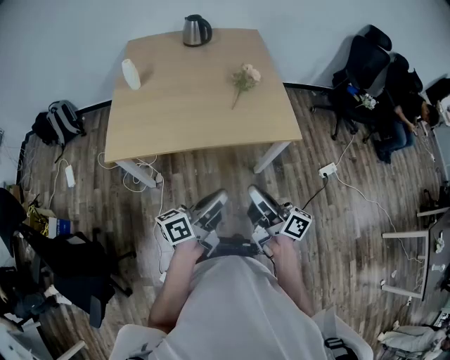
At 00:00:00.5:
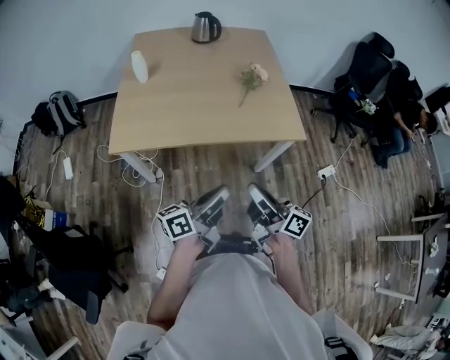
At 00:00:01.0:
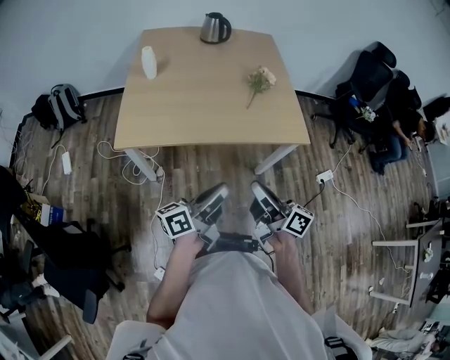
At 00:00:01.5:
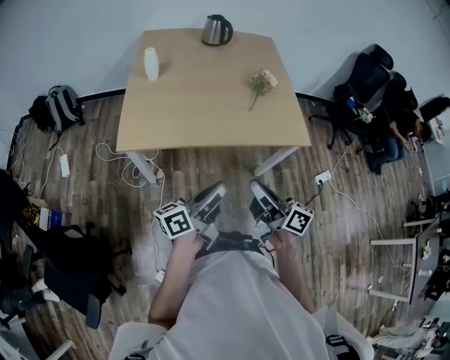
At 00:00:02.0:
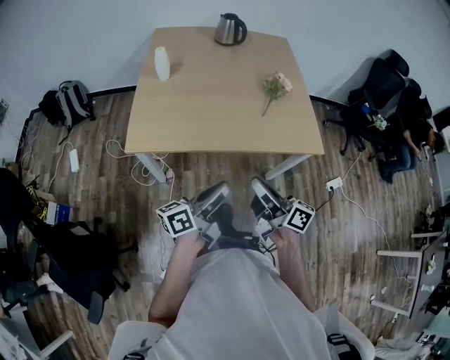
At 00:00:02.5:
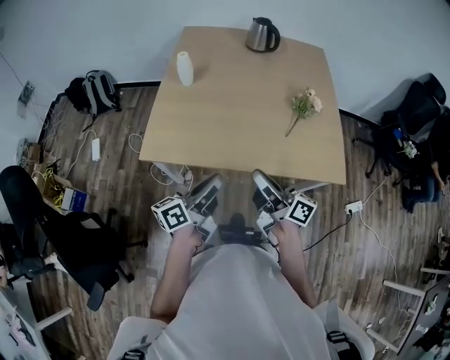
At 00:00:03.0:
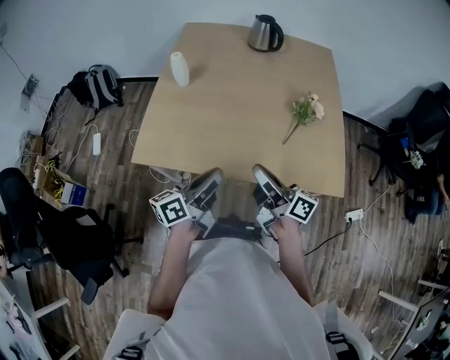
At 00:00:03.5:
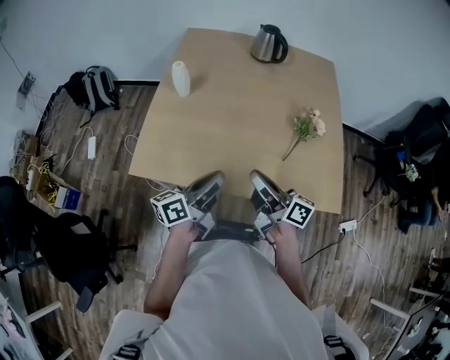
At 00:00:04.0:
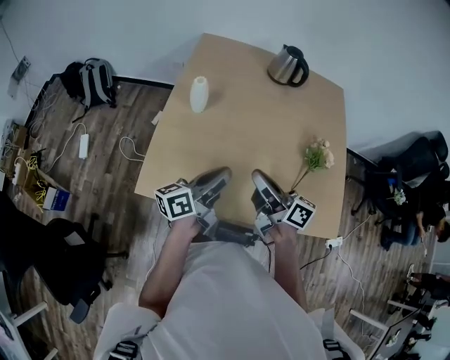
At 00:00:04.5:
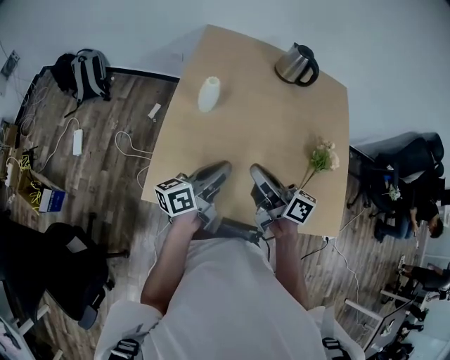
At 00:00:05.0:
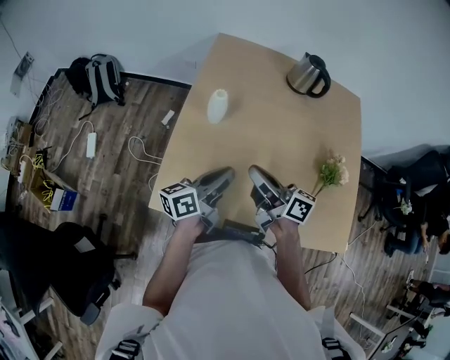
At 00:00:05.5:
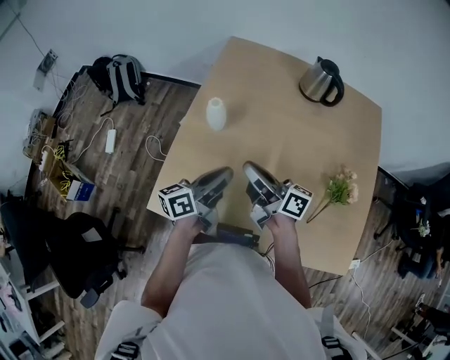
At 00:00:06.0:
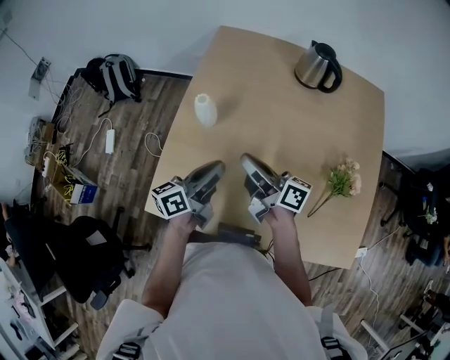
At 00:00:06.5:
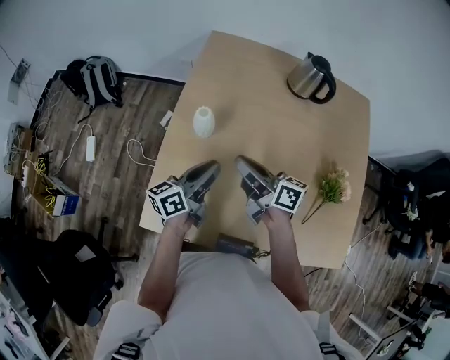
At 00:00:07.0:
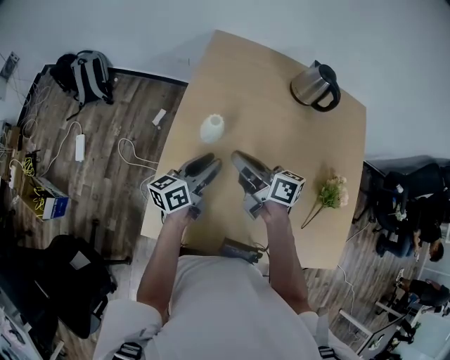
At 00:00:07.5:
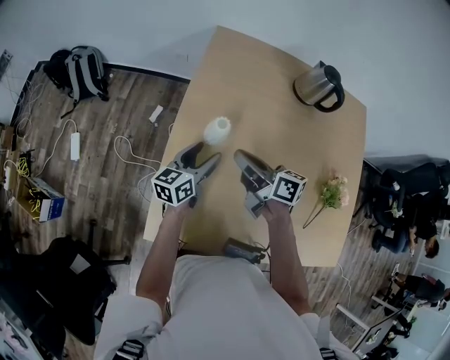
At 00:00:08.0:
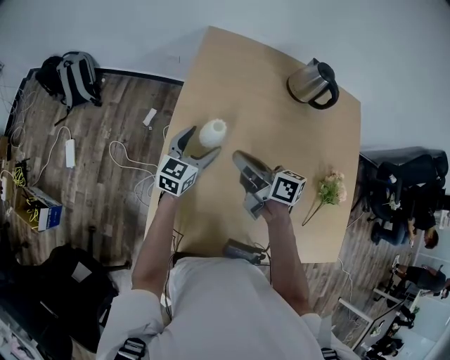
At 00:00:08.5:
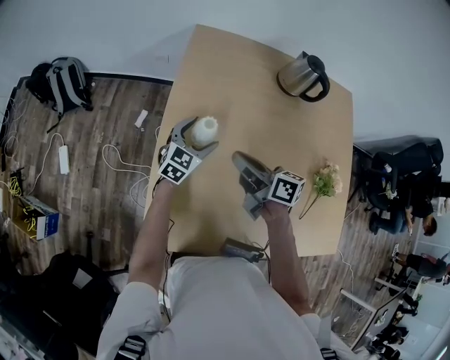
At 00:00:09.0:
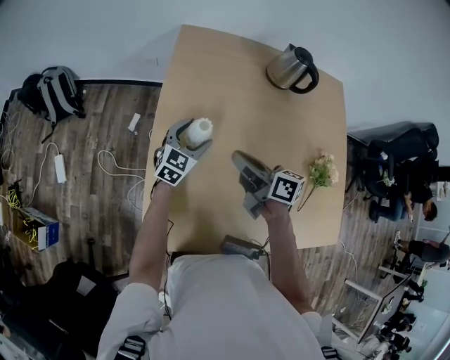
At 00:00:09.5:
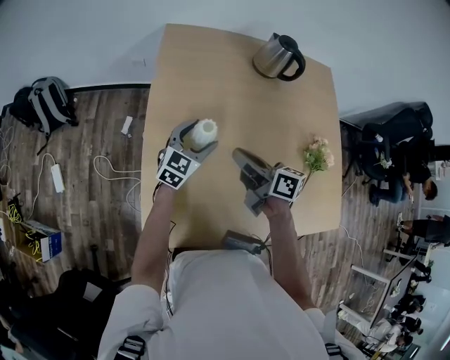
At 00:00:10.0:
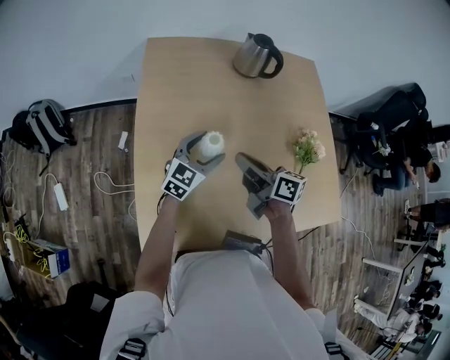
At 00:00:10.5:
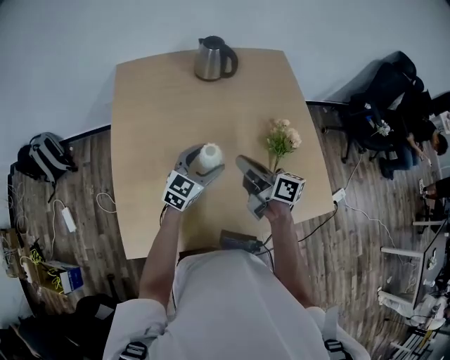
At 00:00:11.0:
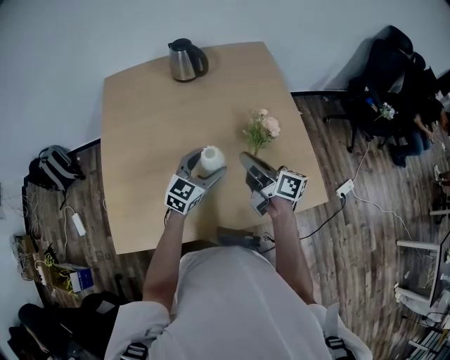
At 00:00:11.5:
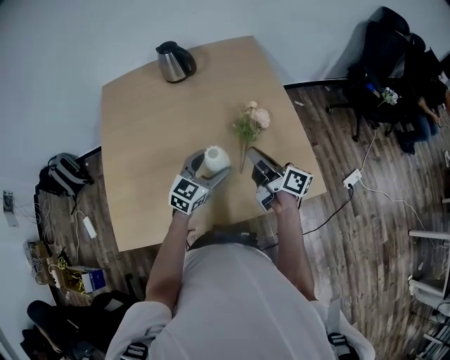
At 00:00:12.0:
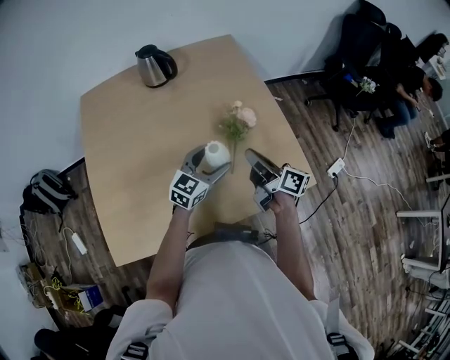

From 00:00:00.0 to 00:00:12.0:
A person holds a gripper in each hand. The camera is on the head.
From 00:00:00.0 to 00:00:02.0: The grippers both shift to the left by about 10 cm.
From 00:00:02.0 to 00:00:04.0: The grippers both shift forward by some 35 cm.
From 00:00:04.0 to 00:00:06.0: Both grippers travel together forward, approximately 15 cm.
From 00:00:06.0 to 00:00:08.0: The right gripper shifts roughly 10 cm forward and to the left, and changes its angle by approximately 20 degrees; the left gripper is displaced forward and downward by roughly 20 cm, rotates around the line of its fingers by some 40 degrees, clockwise from behind, and opens.
From 00:00:08.0 to 00:00:10.0: Both grippers move to the right and backward, approximately 15 cm. The left gripper rotates approximately 30 degrees.
From 00:00:10.0 to 00:00:12.0: The two grippers go approximately 35 cm to the right. The right gripper swivels roughly 20 degrees.

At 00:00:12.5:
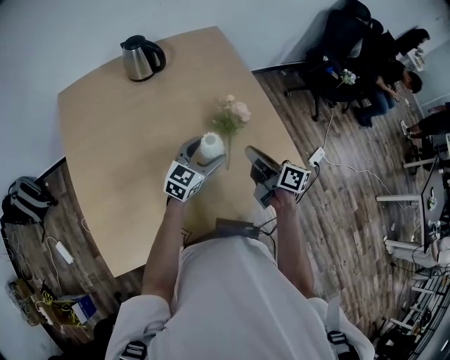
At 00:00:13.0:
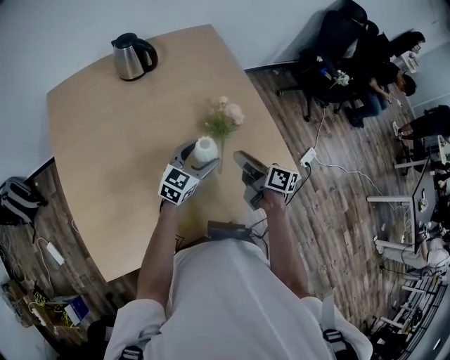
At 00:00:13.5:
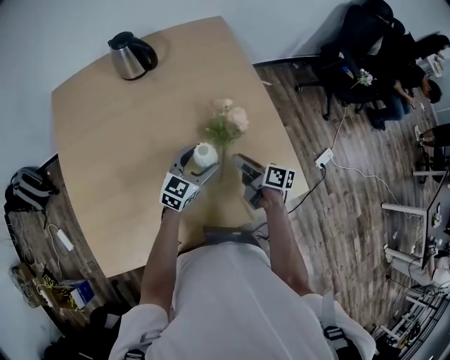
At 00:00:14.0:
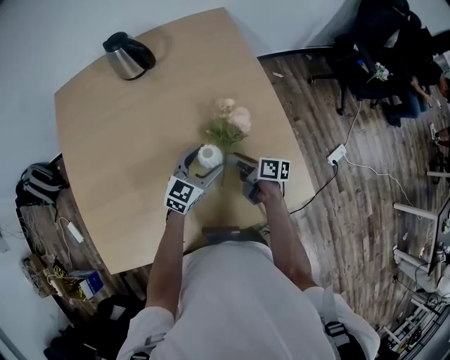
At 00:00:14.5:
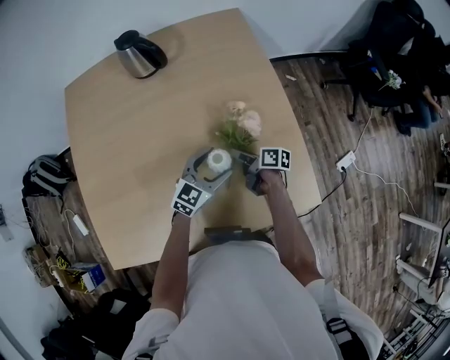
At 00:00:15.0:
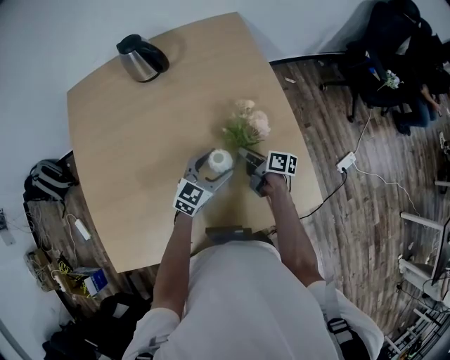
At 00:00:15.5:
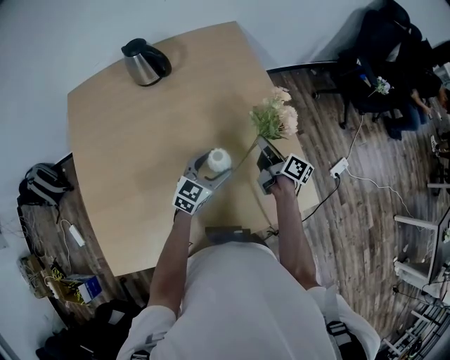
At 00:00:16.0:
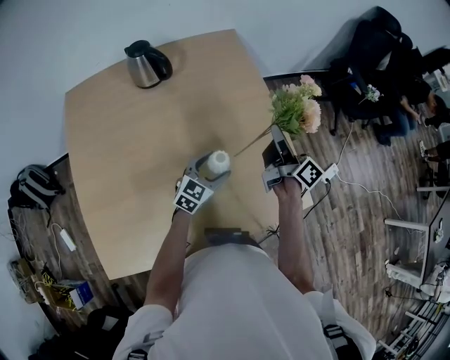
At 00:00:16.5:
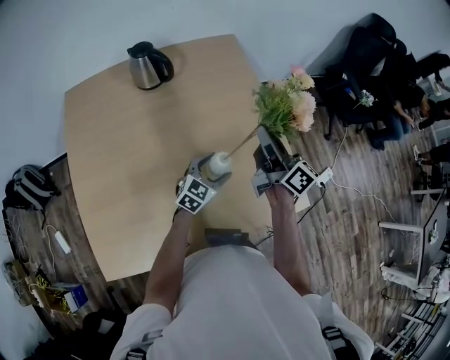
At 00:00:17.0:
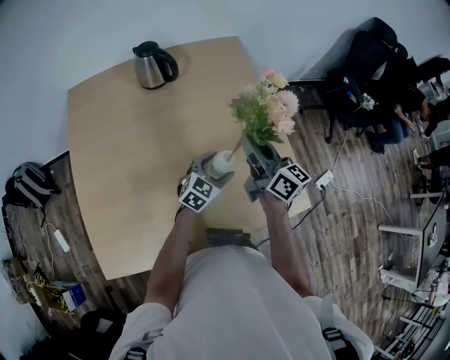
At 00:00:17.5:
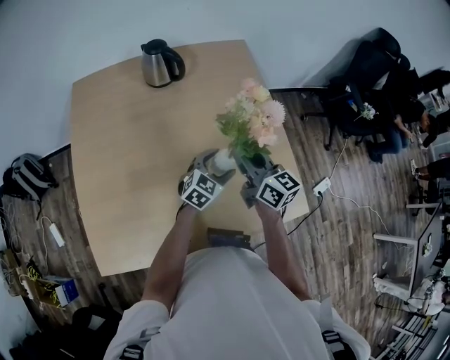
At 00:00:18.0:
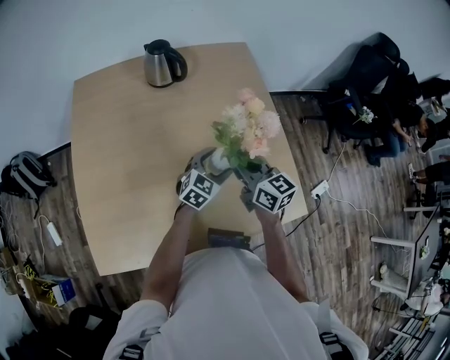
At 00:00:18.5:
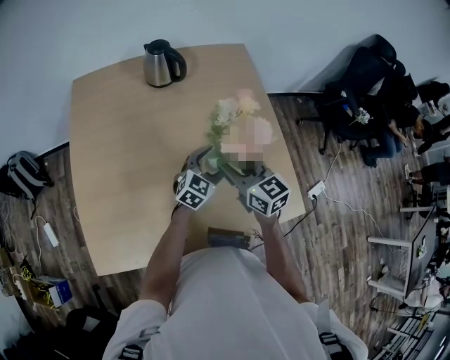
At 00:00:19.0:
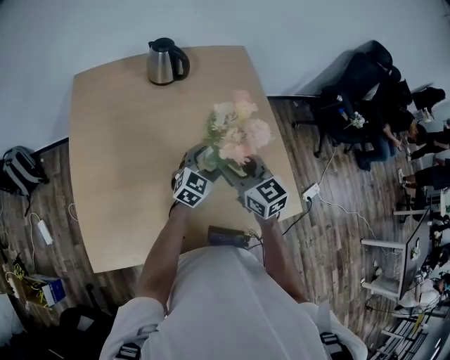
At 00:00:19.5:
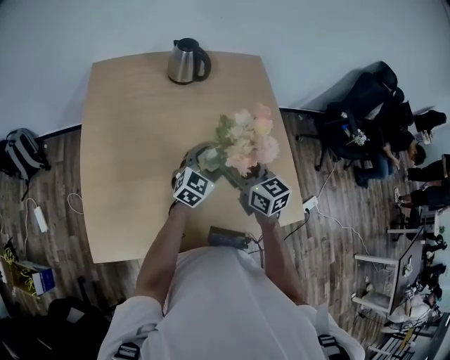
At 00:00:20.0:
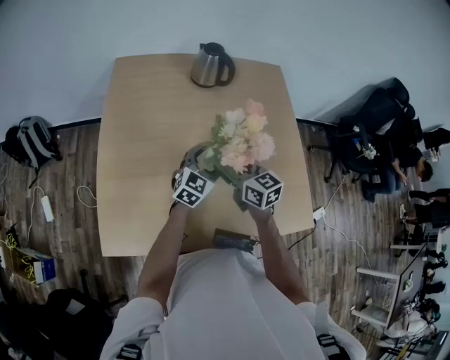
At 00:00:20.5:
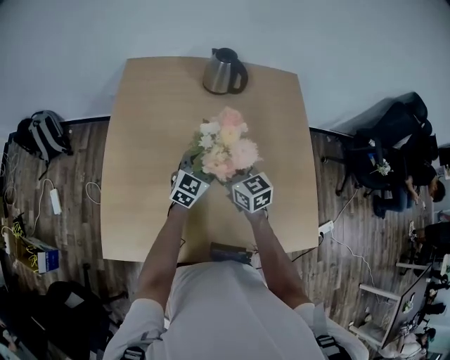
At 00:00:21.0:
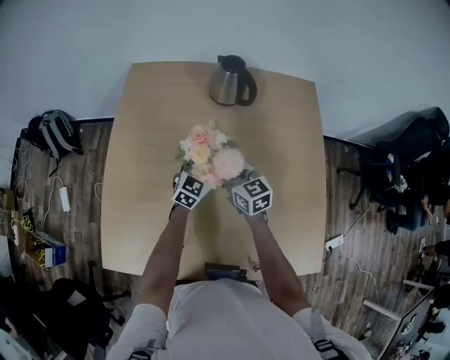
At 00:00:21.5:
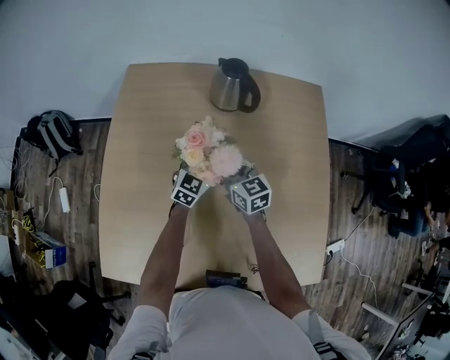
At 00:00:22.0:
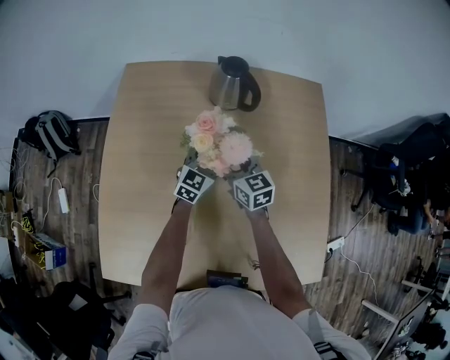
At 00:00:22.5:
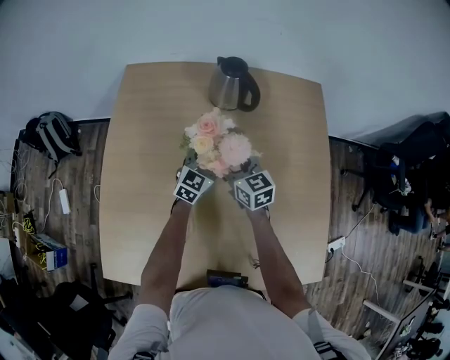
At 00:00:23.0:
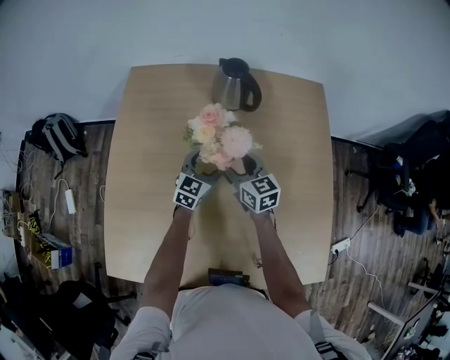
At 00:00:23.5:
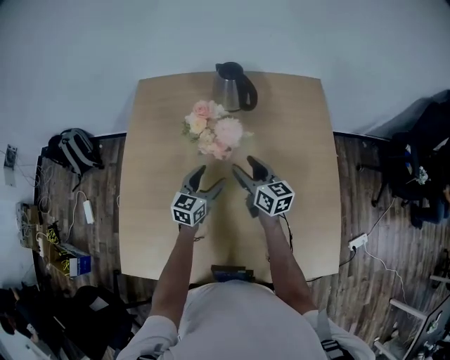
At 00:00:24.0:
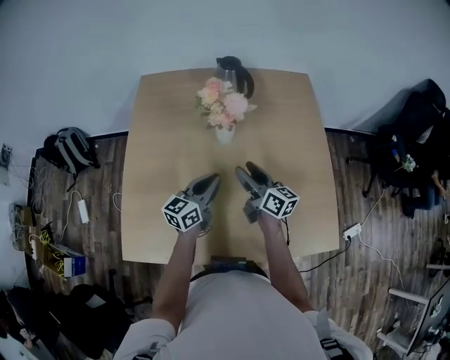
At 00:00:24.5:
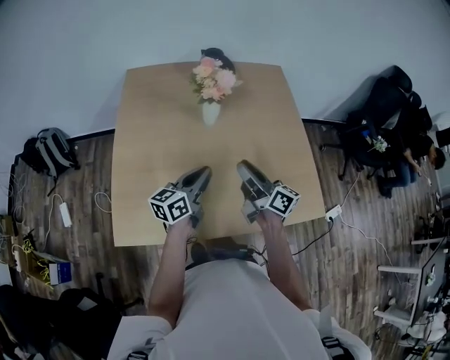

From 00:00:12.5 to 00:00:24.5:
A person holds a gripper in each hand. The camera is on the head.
From 00:00:12.5 to 00:00:14.5: The right gripper moves downward and forward, approximately 25 cm, rotates some 30 degrees, and opens its fingers. The left gripper shifts about 5 cm downward.
From 00:00:14.5 to 00:00:16.5: The right gripper is displaced upward by some 30 cm, and angles its fingers upward, by approximately 40 degrees.
From 00:00:16.5 to 00:00:18.5: The right gripper shifts some 15 cm to the left, backward and downward, changes its angle by about 50 degrees, and opens.
From 00:00:18.5 to 00:00:20.5: The grippers both shift to the left by about 15 cm.
From 00:00:20.5 to 00:00:22.5: Both grippers travel together forward, about 15 cm.
From 00:00:22.5 to 00:00:24.5: The left gripper travels backward and upward by some 35 cm, swivels some 40 degrees, and closes up; the right gripper is displaced backward by approximately 30 cm, turns by some 40 degrees, and closes up.

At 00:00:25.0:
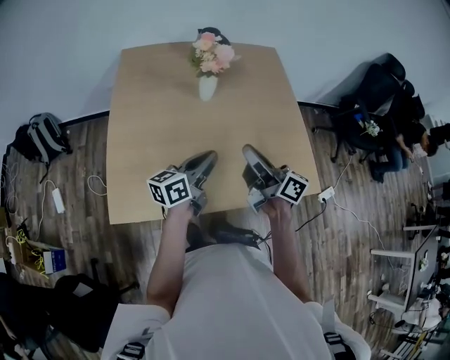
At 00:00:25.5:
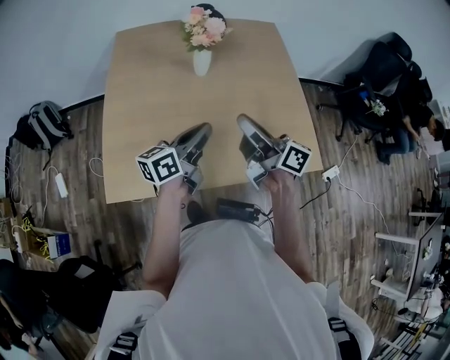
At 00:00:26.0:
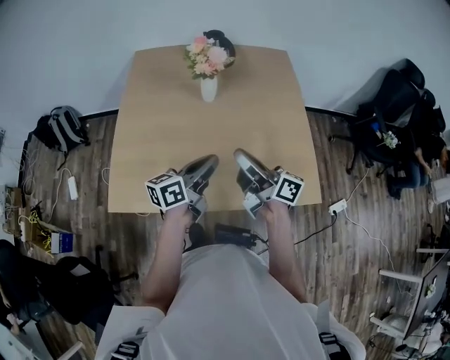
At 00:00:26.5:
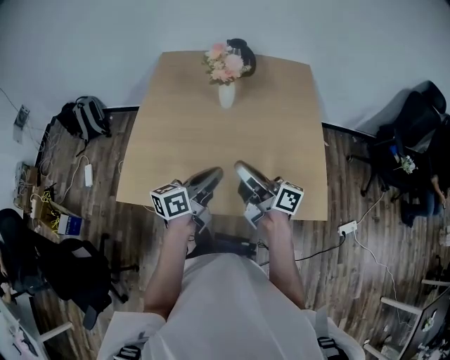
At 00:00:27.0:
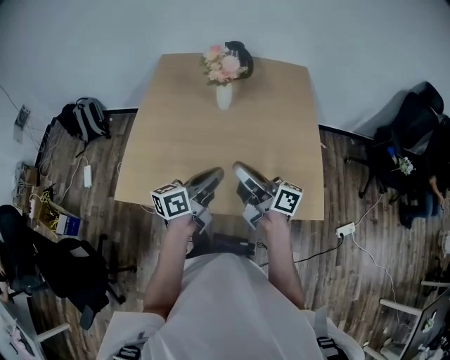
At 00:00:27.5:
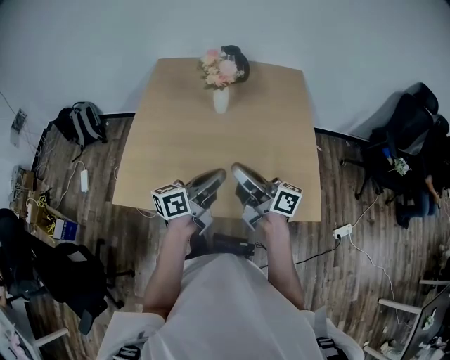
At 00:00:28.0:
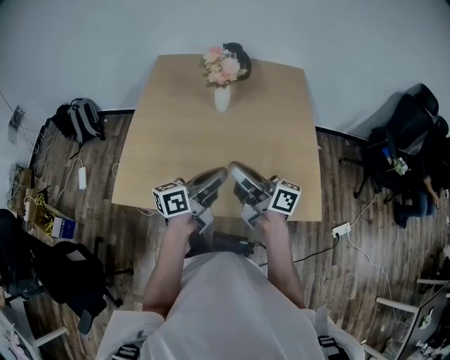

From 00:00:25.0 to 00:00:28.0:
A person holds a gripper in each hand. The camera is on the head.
From 00:00:25.0 to 00:00:26.5: The left gripper travels to the right by some 5 cm; the right gripper rotates roughly 20 degrees.
From 00:00:26.5 to 00:00:28.0: The grippers move only a little.
